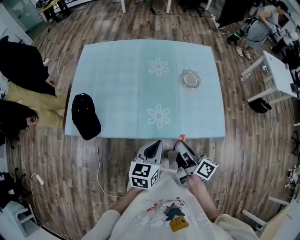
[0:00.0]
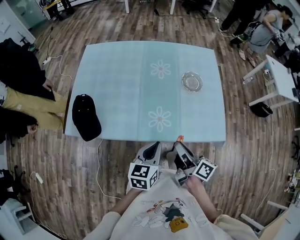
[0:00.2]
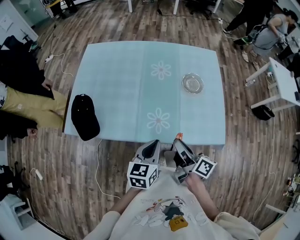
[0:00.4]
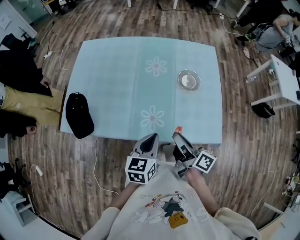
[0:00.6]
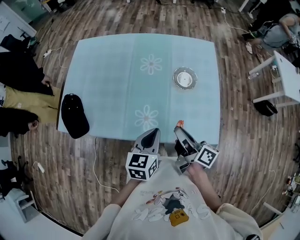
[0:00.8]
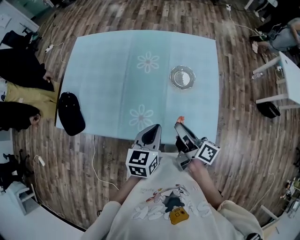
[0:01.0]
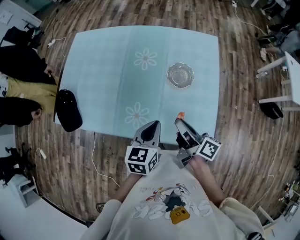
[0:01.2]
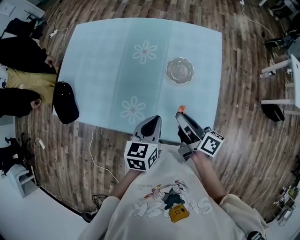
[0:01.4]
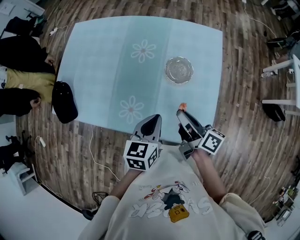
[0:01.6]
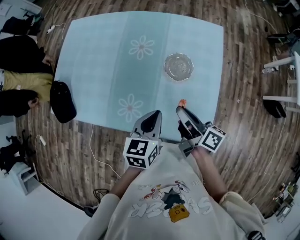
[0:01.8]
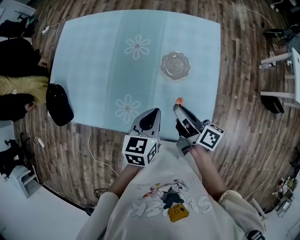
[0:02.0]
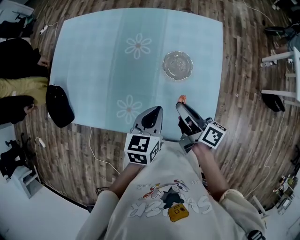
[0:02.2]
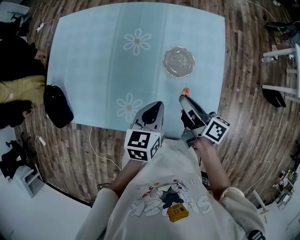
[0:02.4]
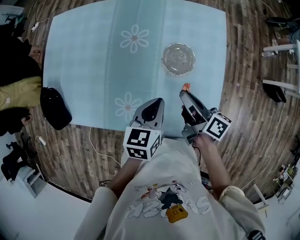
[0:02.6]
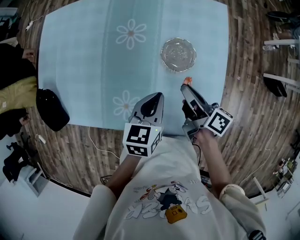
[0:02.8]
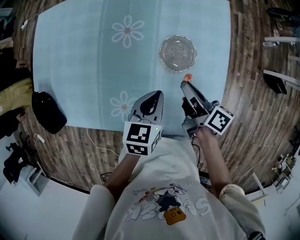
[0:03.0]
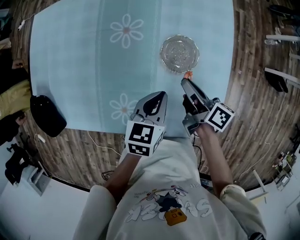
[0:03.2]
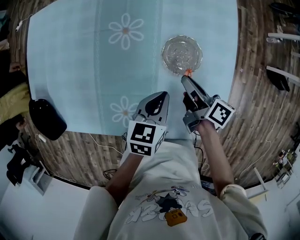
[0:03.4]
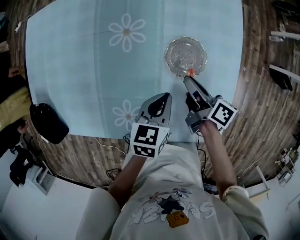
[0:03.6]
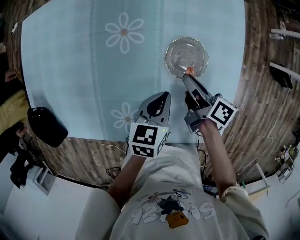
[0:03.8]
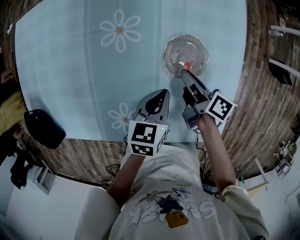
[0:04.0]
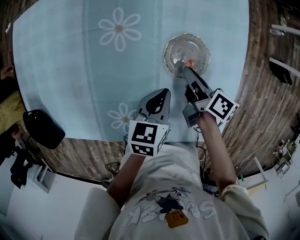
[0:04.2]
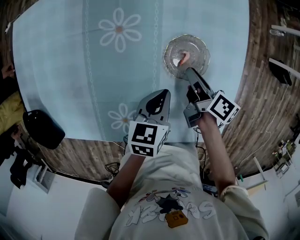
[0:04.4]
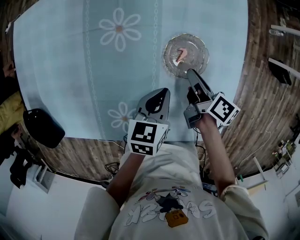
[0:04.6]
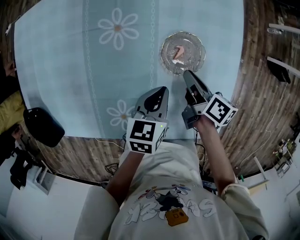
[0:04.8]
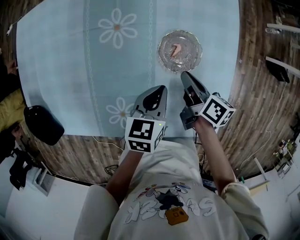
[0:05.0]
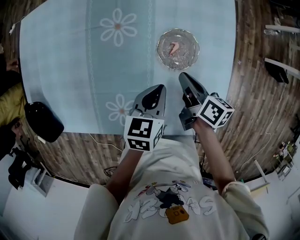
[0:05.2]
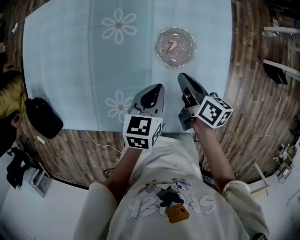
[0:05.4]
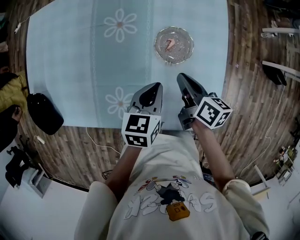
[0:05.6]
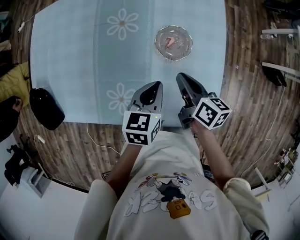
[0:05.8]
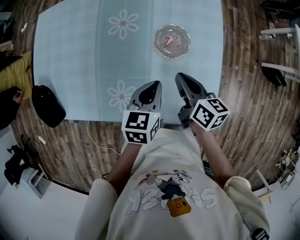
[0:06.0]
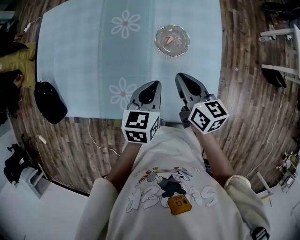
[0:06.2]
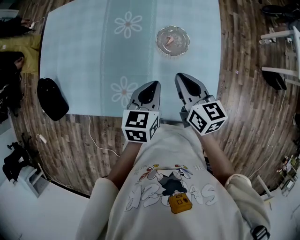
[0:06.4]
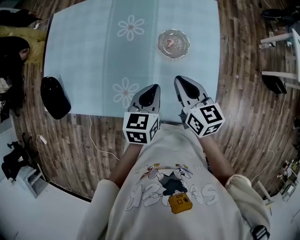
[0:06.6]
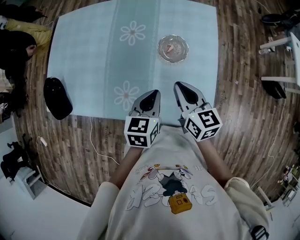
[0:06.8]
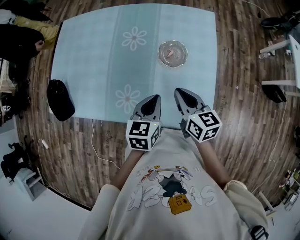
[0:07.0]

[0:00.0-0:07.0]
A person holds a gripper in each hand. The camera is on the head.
0:00.0 to 0:01.4: The grippers both shift to the right and forward by roughly 25 cm.
0:01.4 to 0:02.8: The grippers both shift forward and downward by some 10 cm.
0:02.8 to 0:04.2: Both grippers travel together downward and forward, about 15 cm.
0:04.2 to 0:05.6: The right gripper is displaced upward and backward by about 10 cm. Meanwhile the left gripper shifts about 5 cm upward.
0:05.6 to 0:07.0: The left gripper goes approximately 15 cm backward and upward. The right gripper shifts some 15 cm upward and backward, and swivels about 30 degrees.

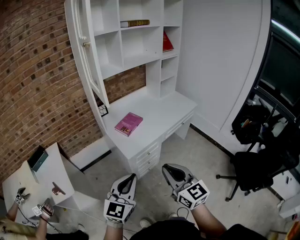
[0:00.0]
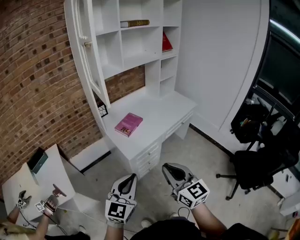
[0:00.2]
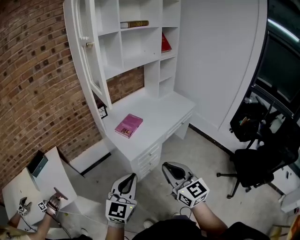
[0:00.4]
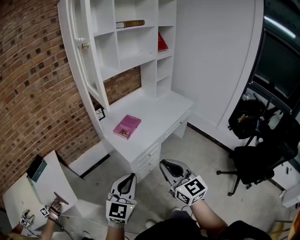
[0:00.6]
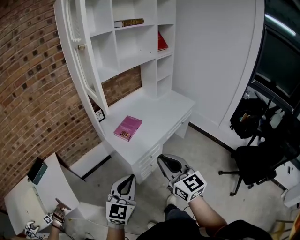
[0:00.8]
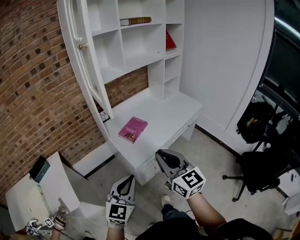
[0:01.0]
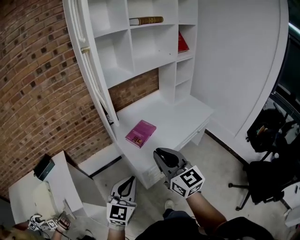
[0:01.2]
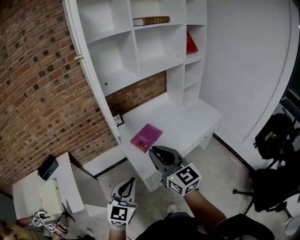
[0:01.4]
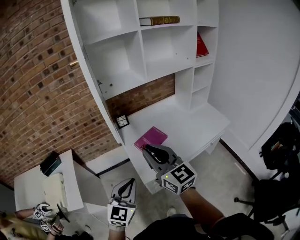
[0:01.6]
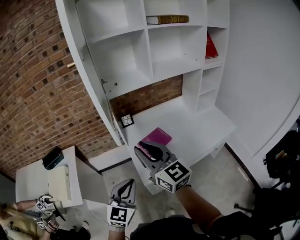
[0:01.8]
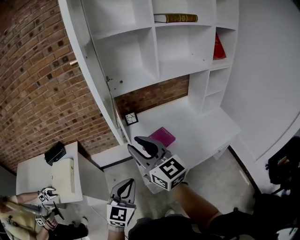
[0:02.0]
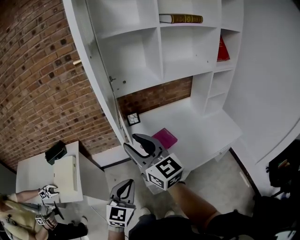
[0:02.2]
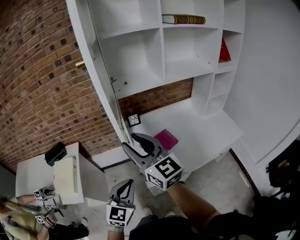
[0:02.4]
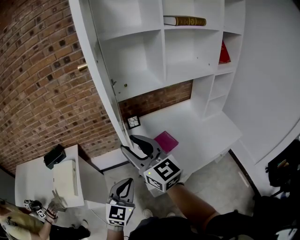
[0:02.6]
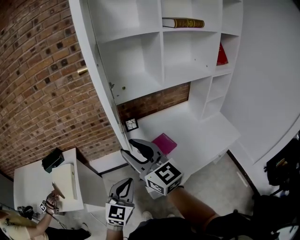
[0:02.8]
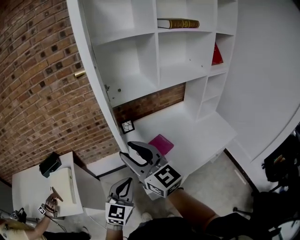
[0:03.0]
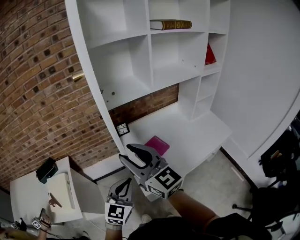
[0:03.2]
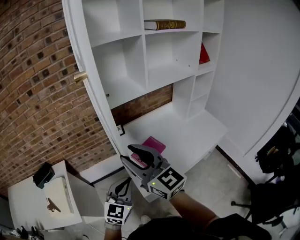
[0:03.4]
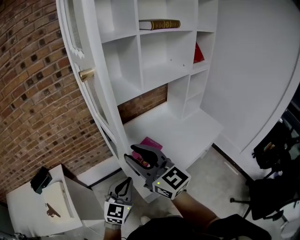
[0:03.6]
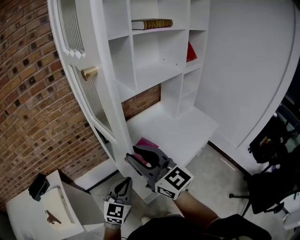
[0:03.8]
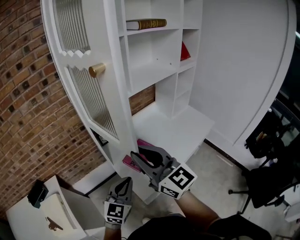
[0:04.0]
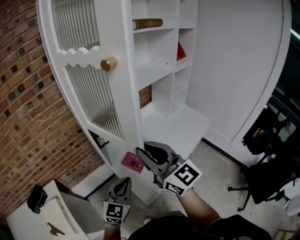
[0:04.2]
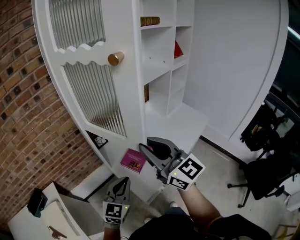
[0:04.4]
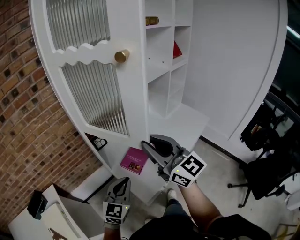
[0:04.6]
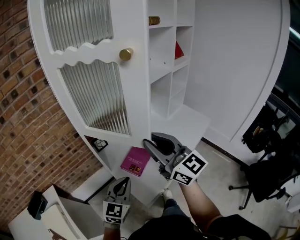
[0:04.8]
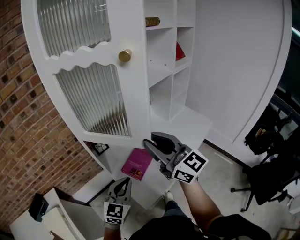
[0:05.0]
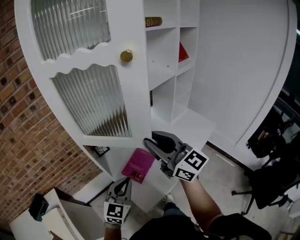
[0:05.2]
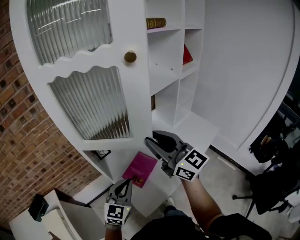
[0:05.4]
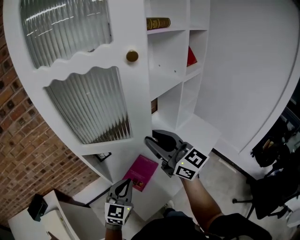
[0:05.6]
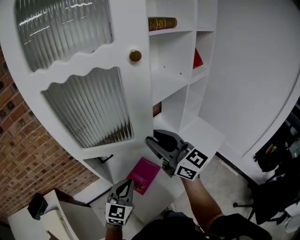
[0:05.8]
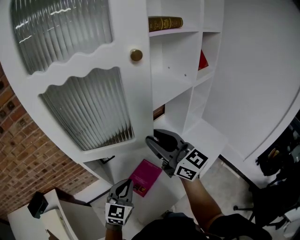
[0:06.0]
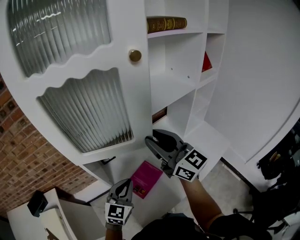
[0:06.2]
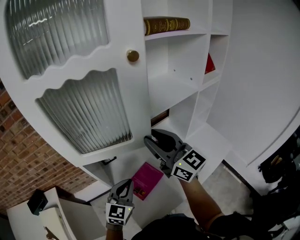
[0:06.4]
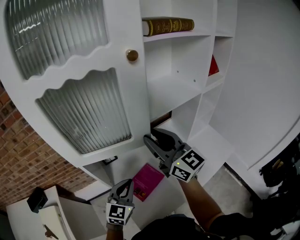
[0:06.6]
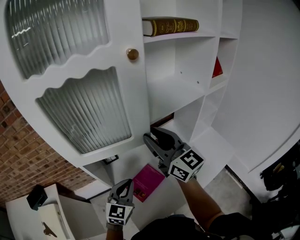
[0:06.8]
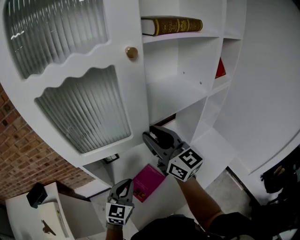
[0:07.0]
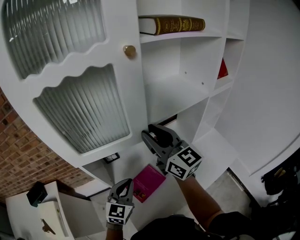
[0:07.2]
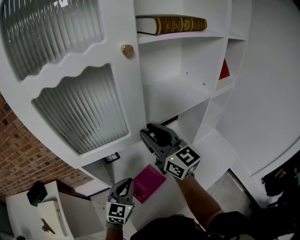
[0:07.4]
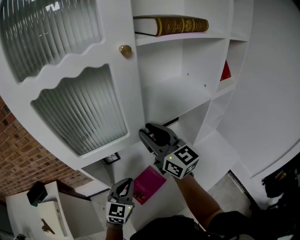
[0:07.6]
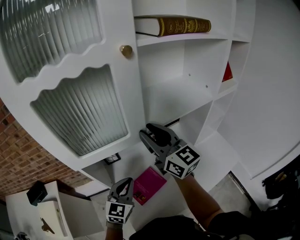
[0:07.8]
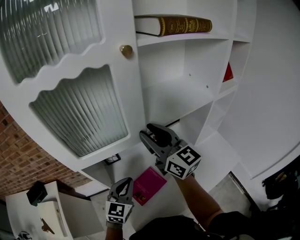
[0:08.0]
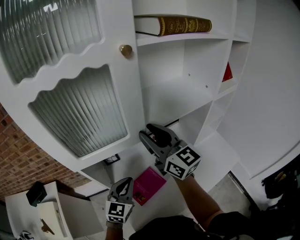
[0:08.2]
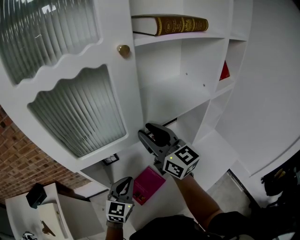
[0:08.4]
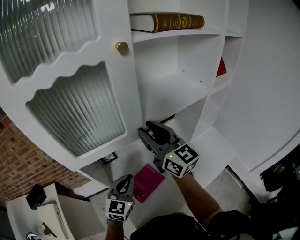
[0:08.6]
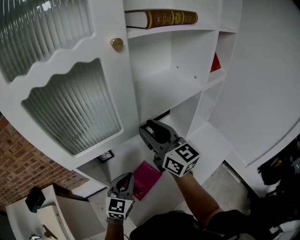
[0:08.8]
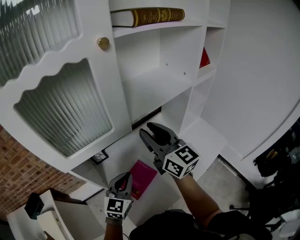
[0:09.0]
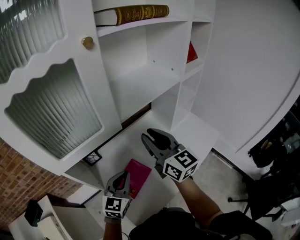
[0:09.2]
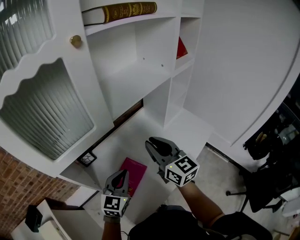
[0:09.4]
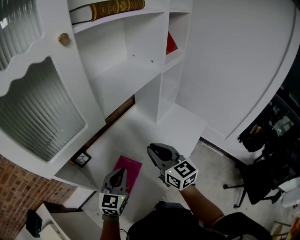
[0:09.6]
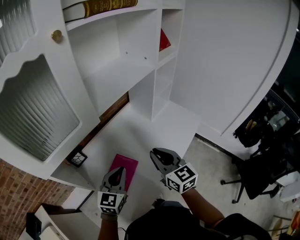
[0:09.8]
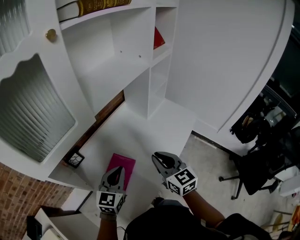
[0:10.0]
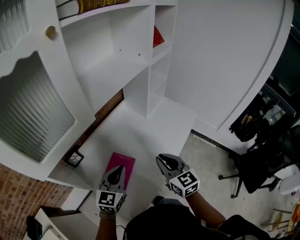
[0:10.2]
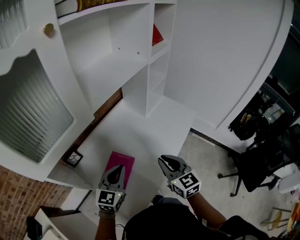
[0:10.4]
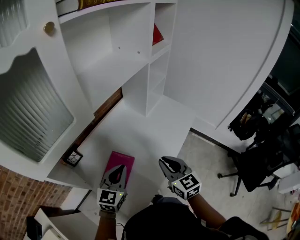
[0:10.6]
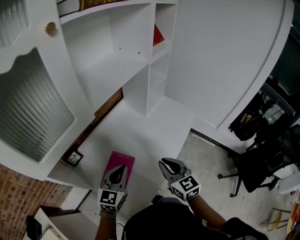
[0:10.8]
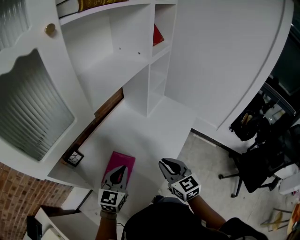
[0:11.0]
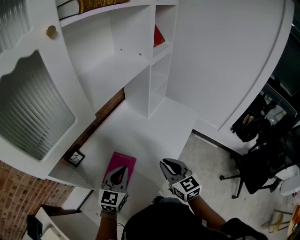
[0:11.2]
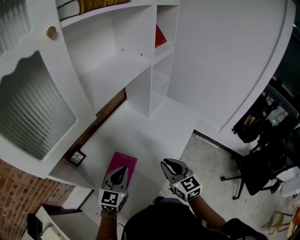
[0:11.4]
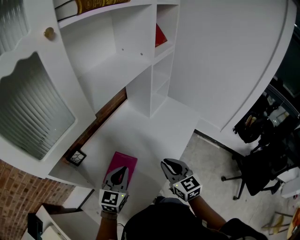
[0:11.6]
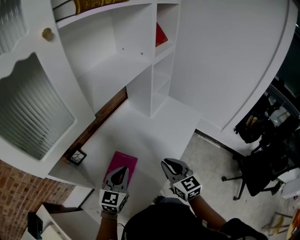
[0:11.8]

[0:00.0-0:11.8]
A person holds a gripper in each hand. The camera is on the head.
0:00.0 to 0:01.4: The grippers both shift forward by approximately 20 cm.
0:01.4 to 0:03.0: The right gripper heads forward, to the left and upward, covering roughly 15 cm, and opens; the left gripper shifts about 10 cm forward.
0:03.0 to 0:04.4: The left gripper is displaced forward by roughly 10 cm, and rotates approximately 20 degrees. Meanwhile the right gripper shifts approximately 10 cm to the right, rotates approximately 20 degrees, and closes up.
0:04.4 to 0:06.0: Both grippers move forward, about 20 cm.
0:06.0 to 0:07.4: The left gripper goes roughly 5 cm forward, while the right gripper shifts about 10 cm forward.
0:07.4 to 0:08.8: There are only small adjustments of the grippers.
0:08.8 to 0:10.4: The left gripper changes place by some 10 cm, and turns by about 20 degrees. Meanwhile the right gripper ends up approximately 30 cm from where it was, rotates about 40 degrees, and closes its fingers.
0:10.4 to 0:11.8: The grippers stay close to where they were, moving slightly.

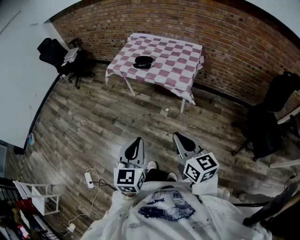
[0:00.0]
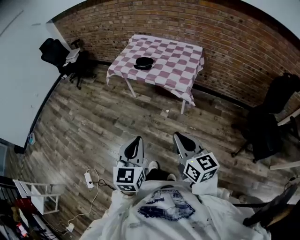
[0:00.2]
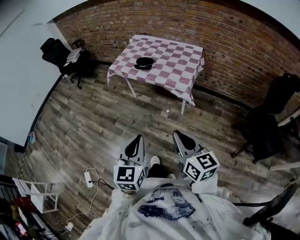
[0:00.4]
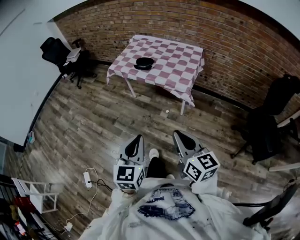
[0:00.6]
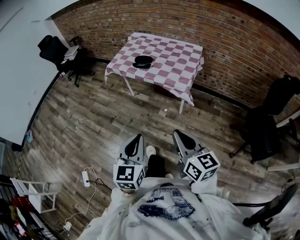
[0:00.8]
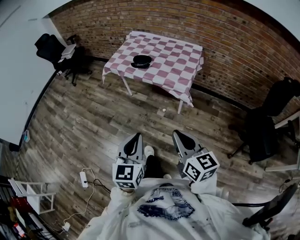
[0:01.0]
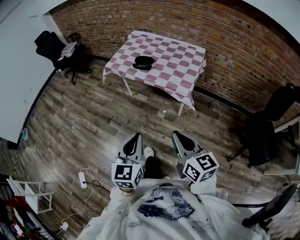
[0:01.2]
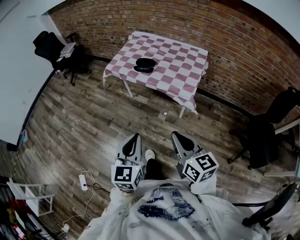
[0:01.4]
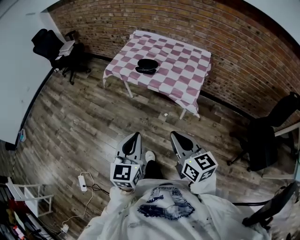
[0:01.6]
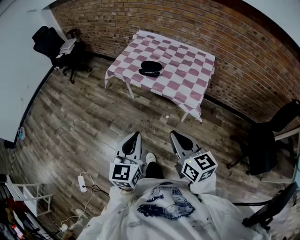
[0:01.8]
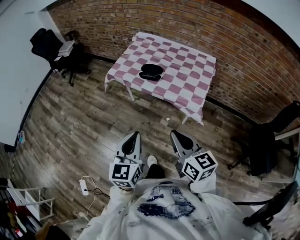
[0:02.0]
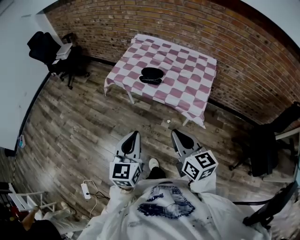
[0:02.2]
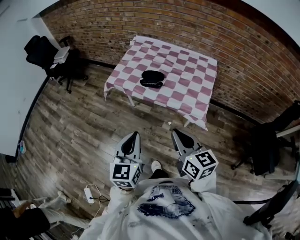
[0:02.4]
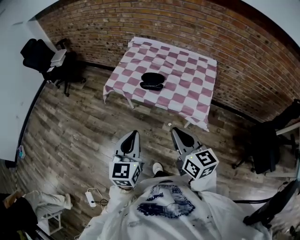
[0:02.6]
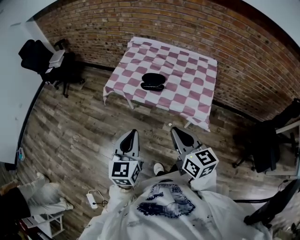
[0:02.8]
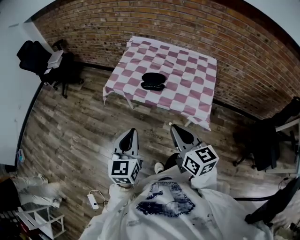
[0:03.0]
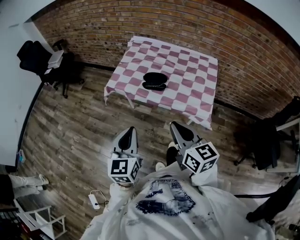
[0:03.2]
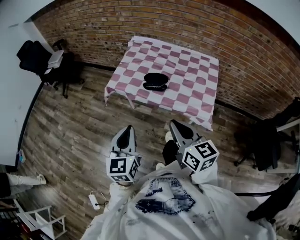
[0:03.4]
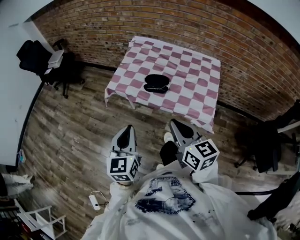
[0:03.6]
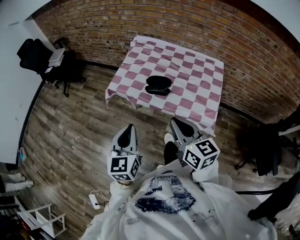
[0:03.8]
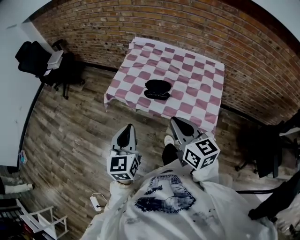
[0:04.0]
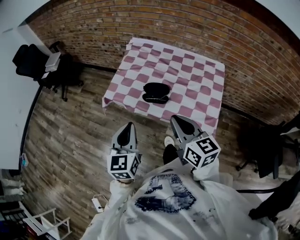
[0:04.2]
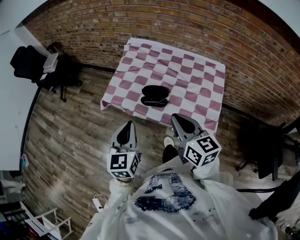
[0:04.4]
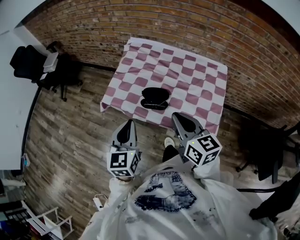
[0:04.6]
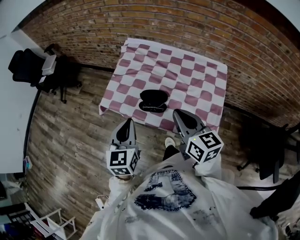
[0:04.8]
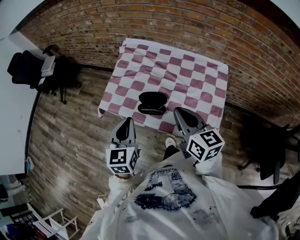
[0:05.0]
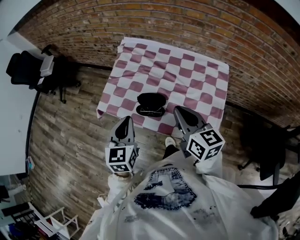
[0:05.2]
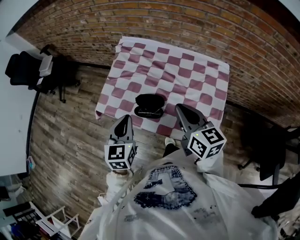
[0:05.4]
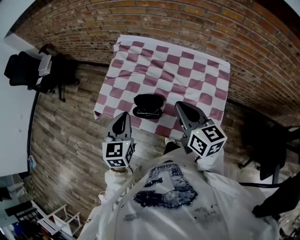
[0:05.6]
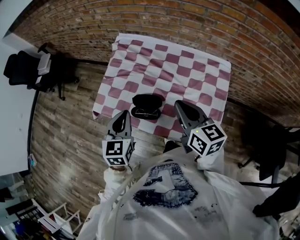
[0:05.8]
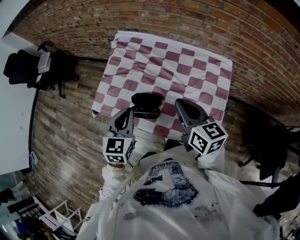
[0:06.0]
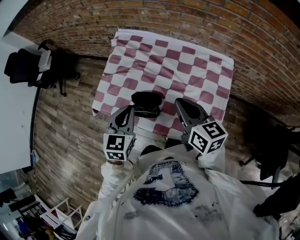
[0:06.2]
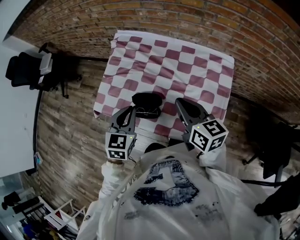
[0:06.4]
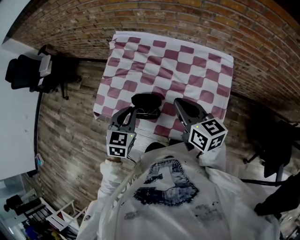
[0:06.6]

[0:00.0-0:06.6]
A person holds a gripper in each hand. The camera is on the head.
0:00.0 to 0:01.6: The grippers both shift forward by some 15 cm.
0:01.6 to 0:03.2: The two grippers go approximately 25 cm forward and to the left.
0:03.2 to 0:05.0: Both grippers move forward, roughly 25 cm.
0:05.0 to 0:06.6: The right gripper shifts roughly 10 cm forward, to the right and downward. The left gripper travels forward, downward and to the right by some 15 cm, and swivels about 20 degrees.
